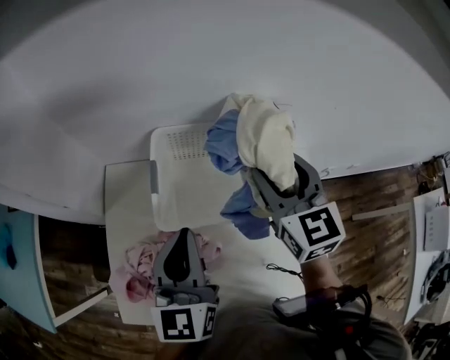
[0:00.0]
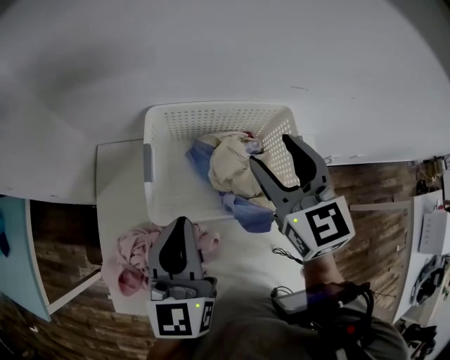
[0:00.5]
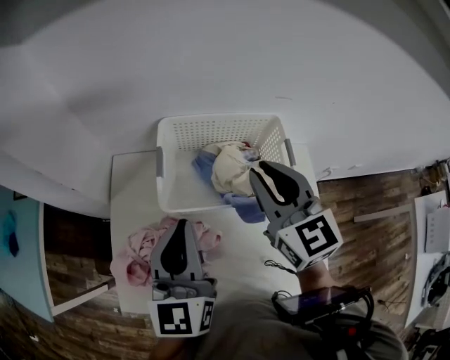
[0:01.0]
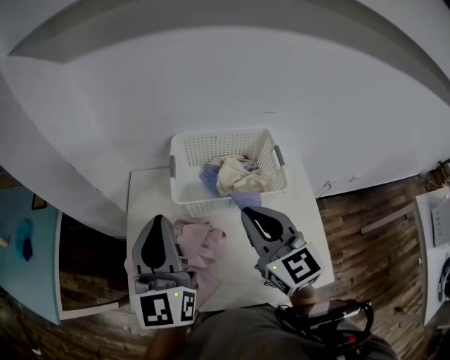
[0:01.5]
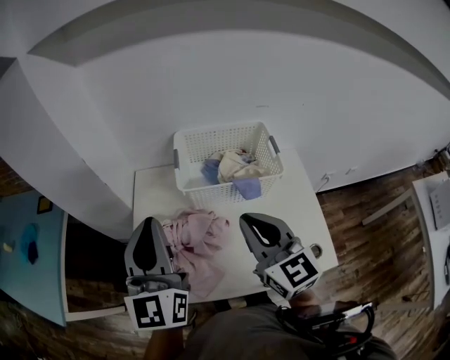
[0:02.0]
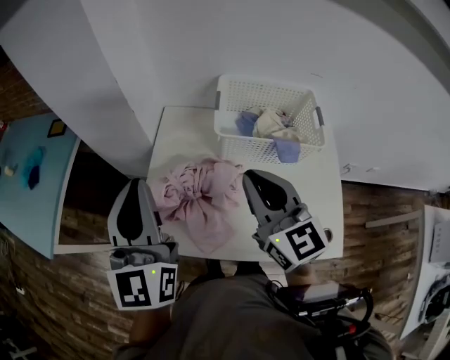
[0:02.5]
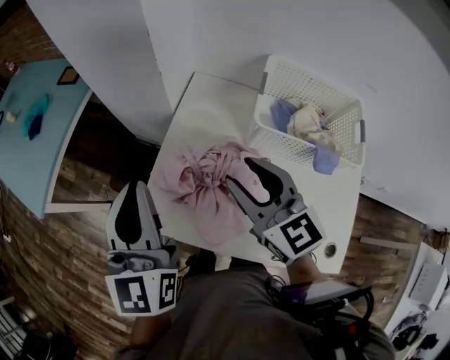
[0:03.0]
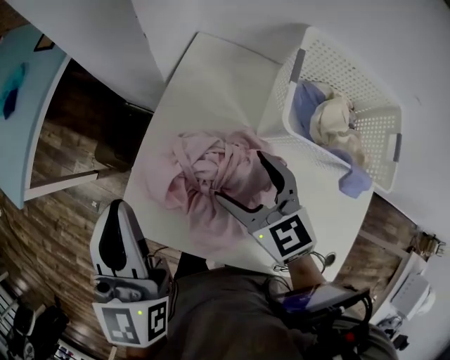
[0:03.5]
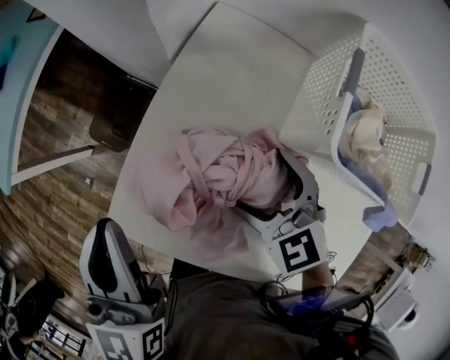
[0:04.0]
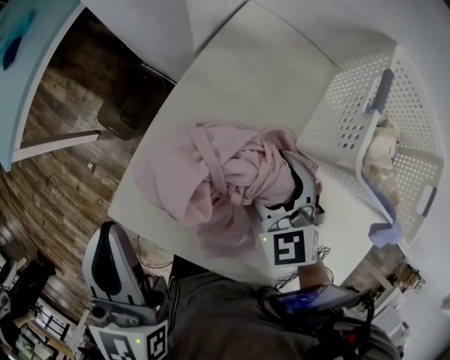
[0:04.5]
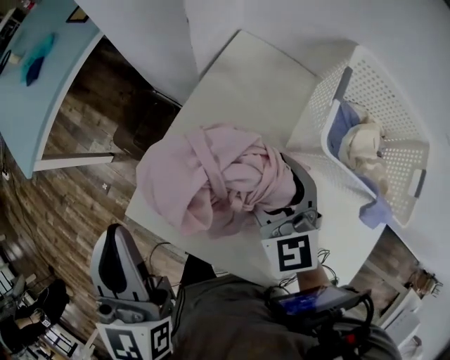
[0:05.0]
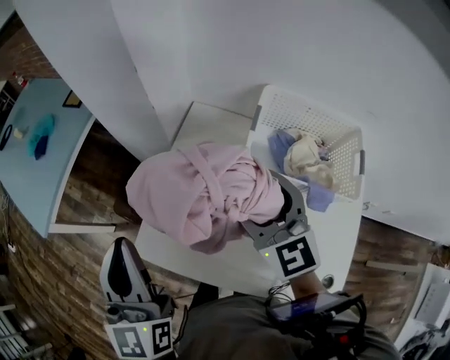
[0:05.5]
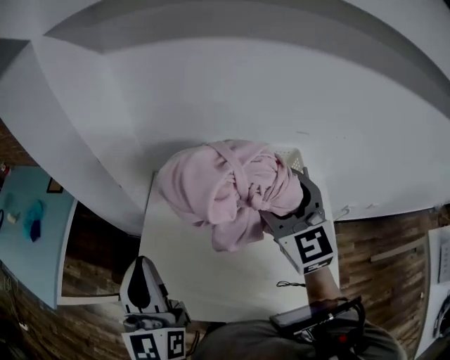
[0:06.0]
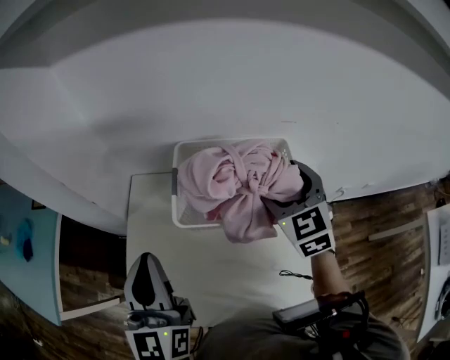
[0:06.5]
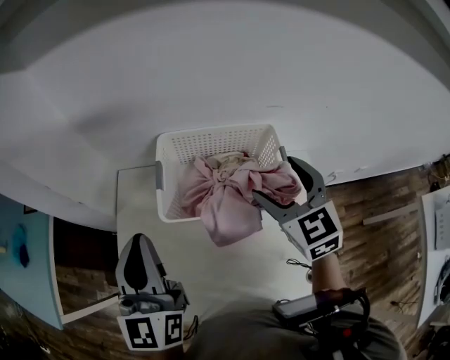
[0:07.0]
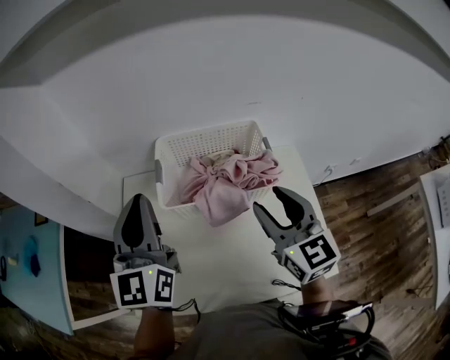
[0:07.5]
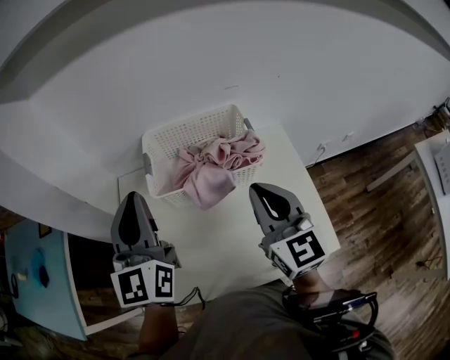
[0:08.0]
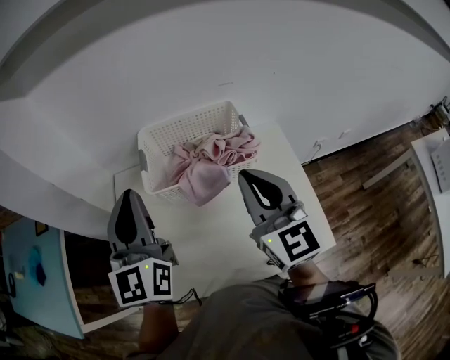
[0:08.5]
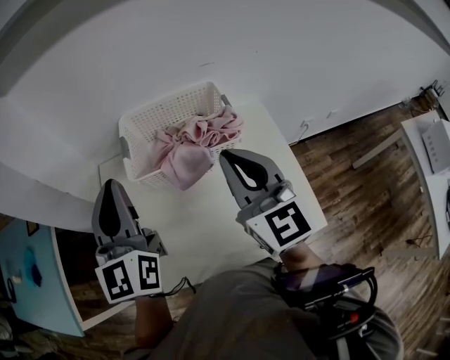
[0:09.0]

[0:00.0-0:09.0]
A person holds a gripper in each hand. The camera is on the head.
0:00.0 to 0:02.0: The left gripper heads backward, upward and to the left, covering approximately 20 cm, while the right gripper heads backward and to the left, covering approximately 25 cm, and closes its fingers.
0:02.0 to 0:04.5: The right gripper goes approximately 30 cm downward, tilts its fingers approximately 30 degrees downward, and opens. The left gripper changes place by roughly 25 cm, and rotates roughly 40 degrees.
0:04.5 to 0:07.0: The right gripper shifts by some 40 cm, and changes its angle by approximately 40 degrees. Meanwhile the left gripper ends up about 25 cm from where it was, and turns by approximately 30 degrees.
0:07.0 to 0:09.0: The left gripper ends up approximately 5 cm from where it was. Meanwhile the right gripper travels backward and upward by approximately 15 cm, swivels about 30 degrees, and closes.

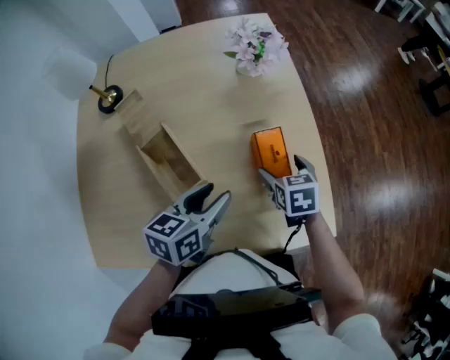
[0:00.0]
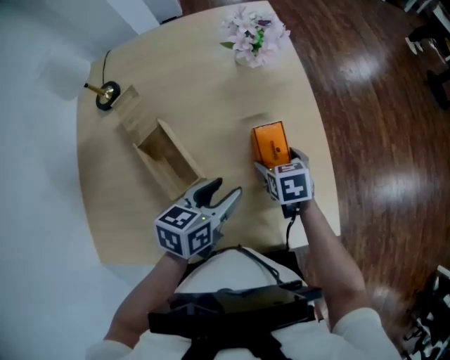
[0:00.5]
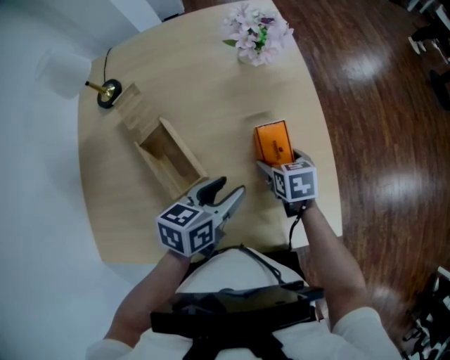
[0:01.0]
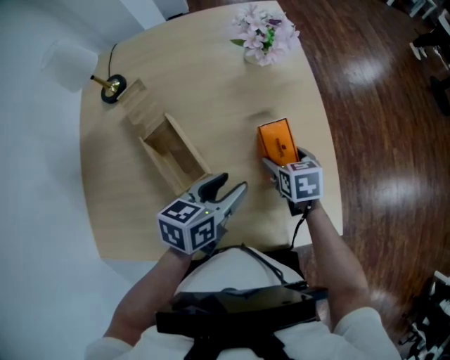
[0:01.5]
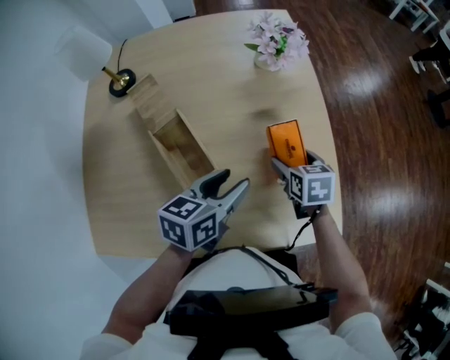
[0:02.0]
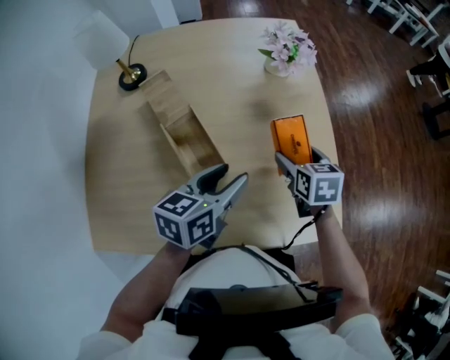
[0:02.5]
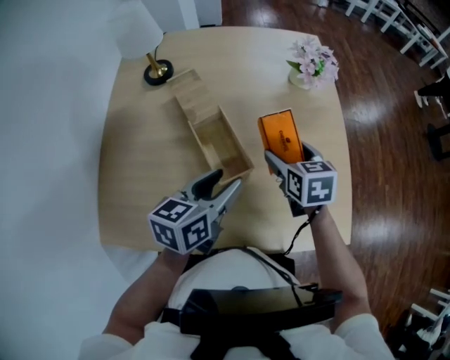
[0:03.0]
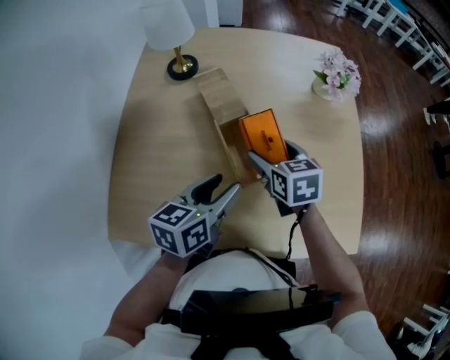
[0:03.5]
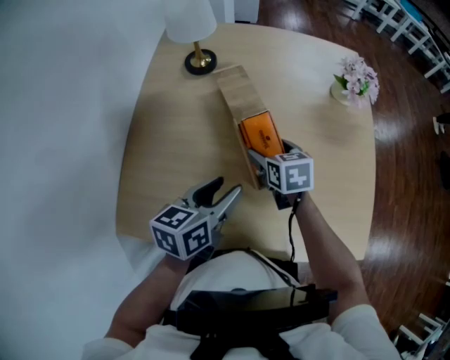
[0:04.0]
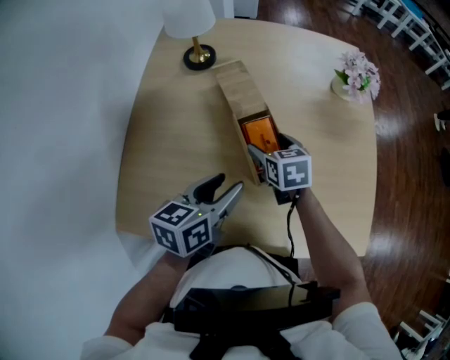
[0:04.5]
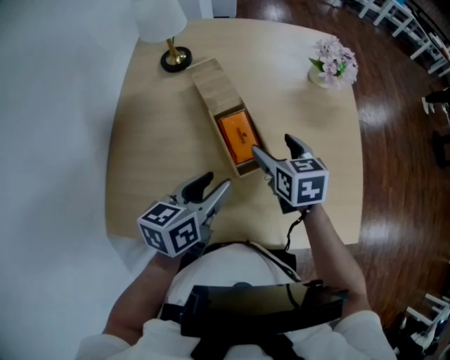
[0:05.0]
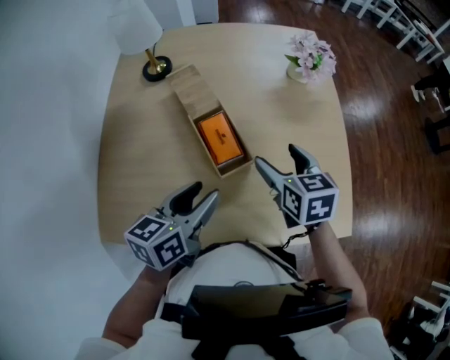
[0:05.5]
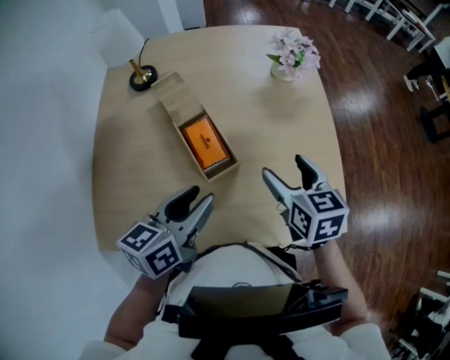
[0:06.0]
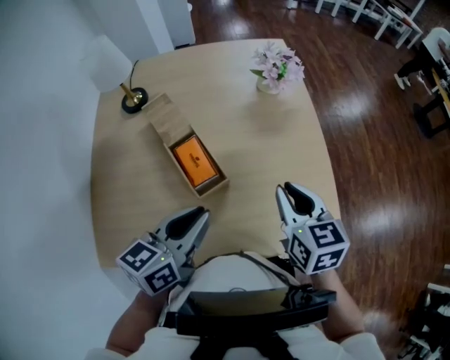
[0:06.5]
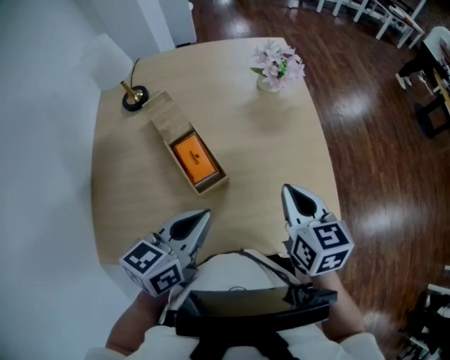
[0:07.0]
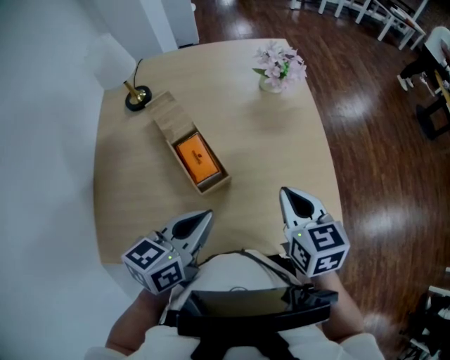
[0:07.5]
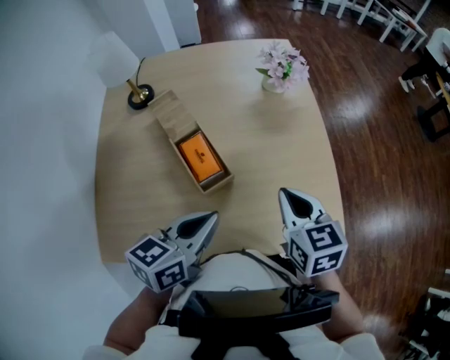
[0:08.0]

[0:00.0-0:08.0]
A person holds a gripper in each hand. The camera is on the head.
0:00.0 to 0:02.0: The grippers make only small movements.
0:02.0 to 0:04.0: Both grippers move to the left, some 25 cm.
0:04.0 to 0:06.0: The right gripper moves to the right, upward and backward, roughly 25 cm. Meanwhile the left gripper heads to the right and upward, covering roughly 10 cm.
0:06.0 to 0:08.0: The right gripper shifts by approximately 5 cm, and closes up. The left gripper travels to the right by approximately 5 cm, and closes.

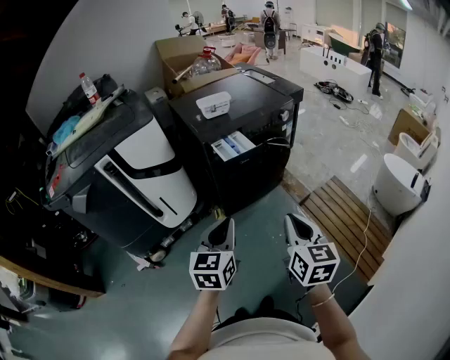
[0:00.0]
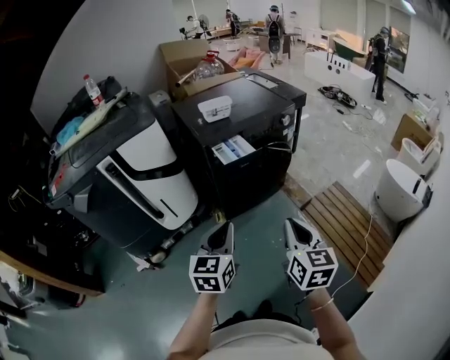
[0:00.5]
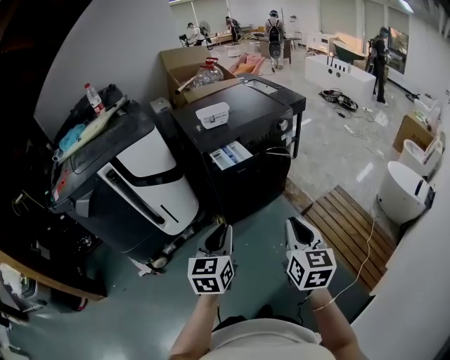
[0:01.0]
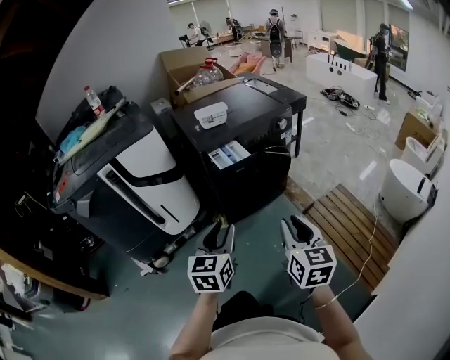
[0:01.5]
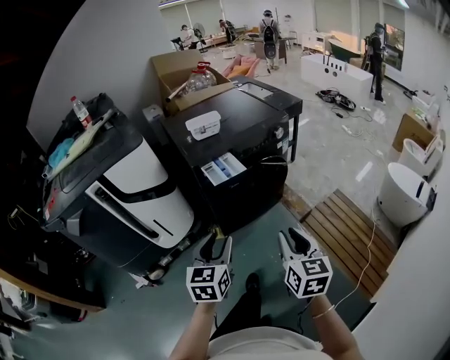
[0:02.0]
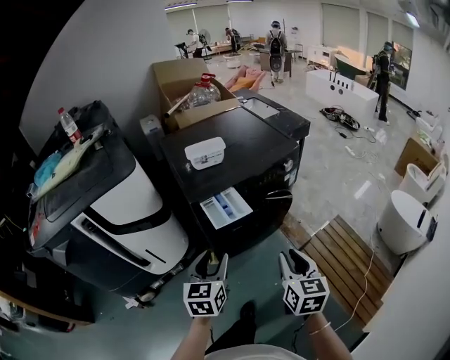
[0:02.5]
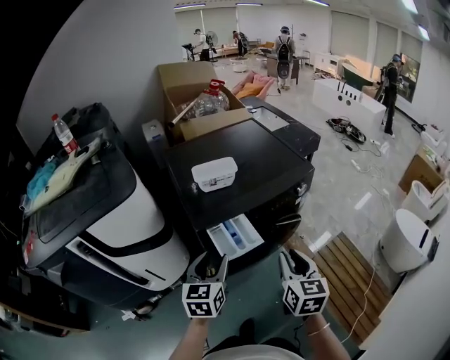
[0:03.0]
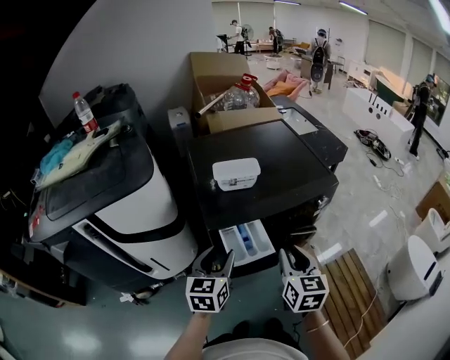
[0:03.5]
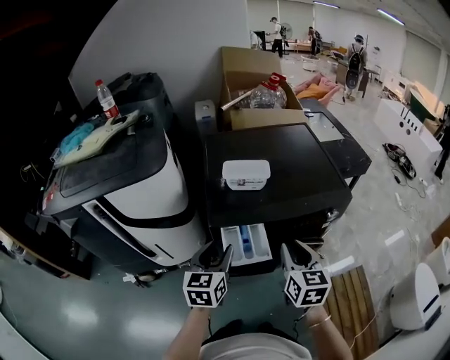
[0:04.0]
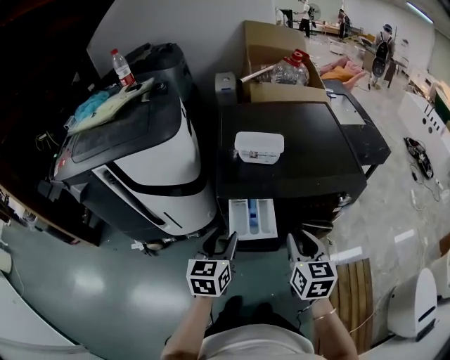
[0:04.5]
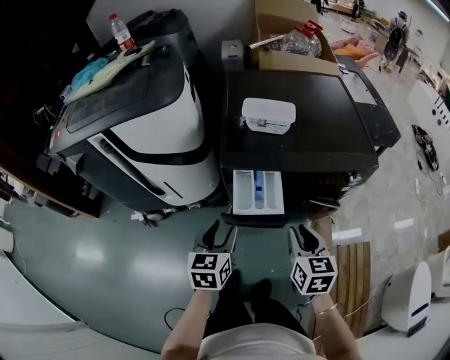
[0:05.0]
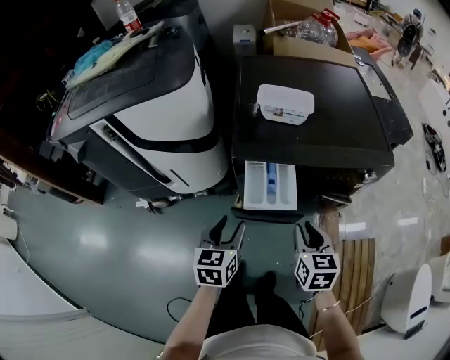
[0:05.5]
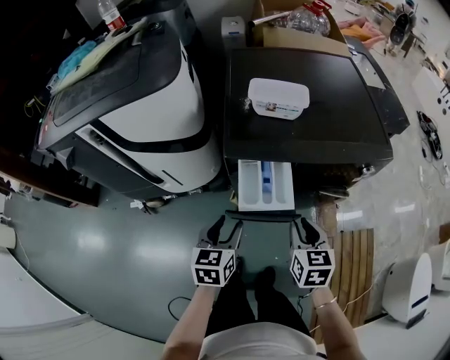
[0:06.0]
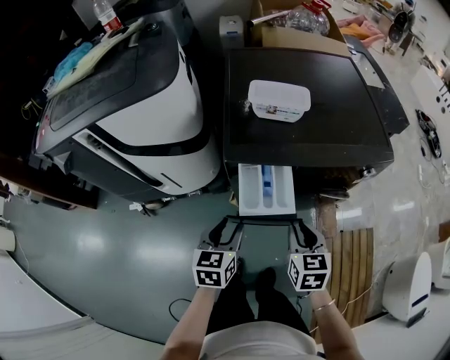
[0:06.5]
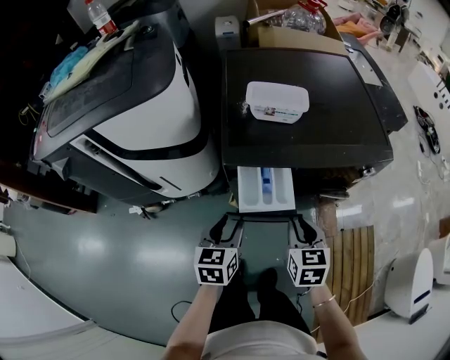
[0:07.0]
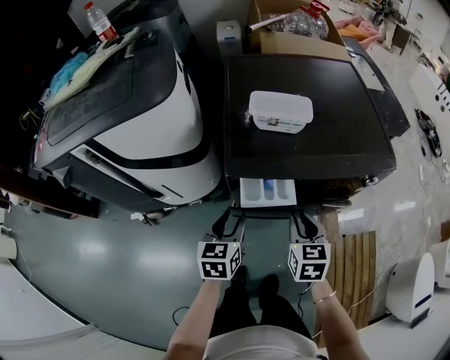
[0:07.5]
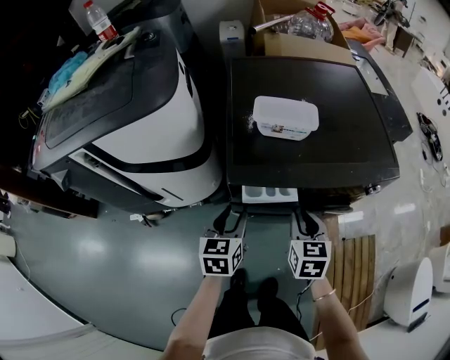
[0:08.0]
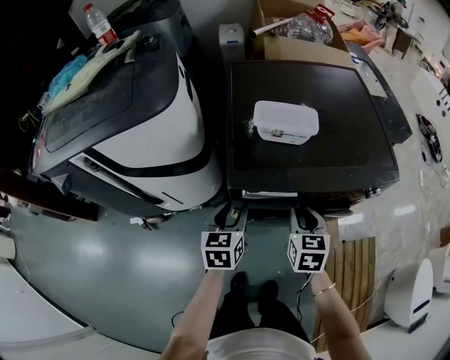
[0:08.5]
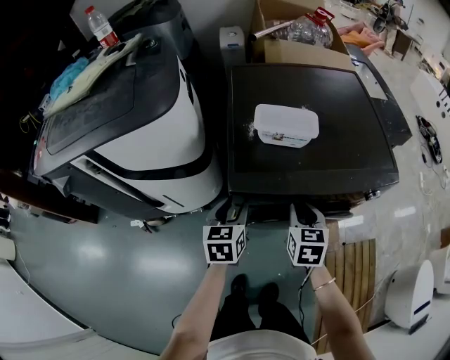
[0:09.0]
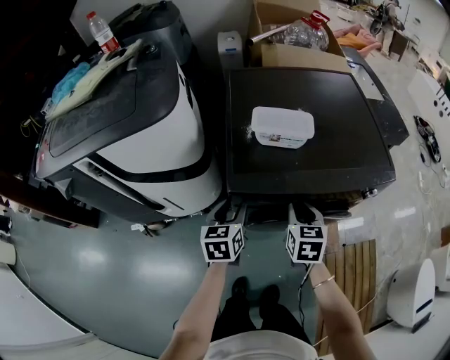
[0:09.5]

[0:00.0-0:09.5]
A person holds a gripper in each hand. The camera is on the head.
0:00.0 to 0:02.0: The left gripper travels forward by approximately 5 cm, and opens up, while the right gripper shifts some 10 cm forward and to the right, and opens its fingers.
0:02.0 to 0:04.0: The two grippers go roughly 35 cm forward. The left gripper turns by approximately 20 degrees, while the right gripper rotates roughly 20 degrees.
0:04.0 to 0:05.5: The left gripper goes some 15 cm downward and backward. Meanwhile the right gripper heads downward, covering some 10 cm.
0:05.5 to 0:07.5: Both grippers travel together forward, about 10 cm.
0:07.5 to 0:09.5: Both grippers travel together forward, about 10 cm.
